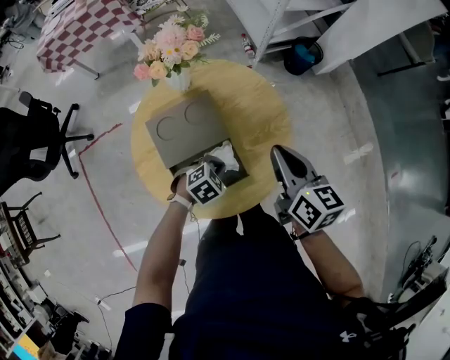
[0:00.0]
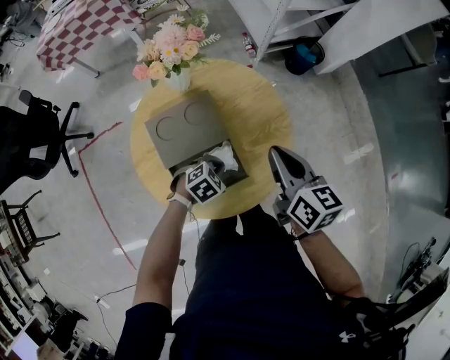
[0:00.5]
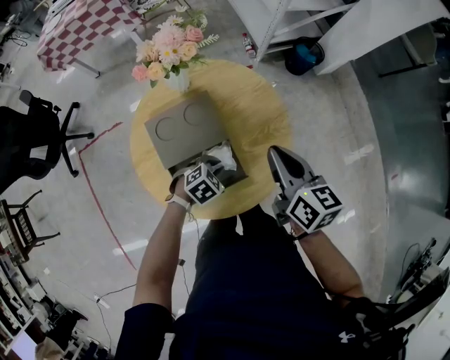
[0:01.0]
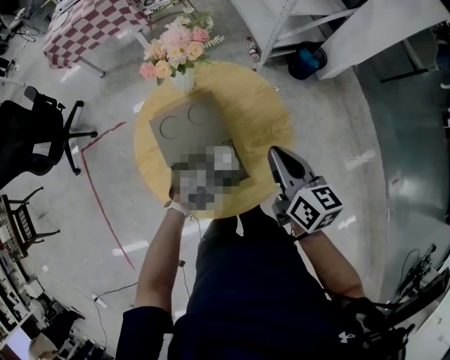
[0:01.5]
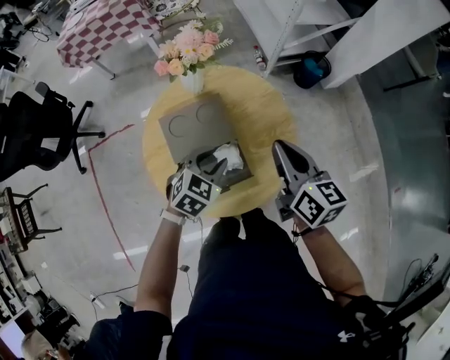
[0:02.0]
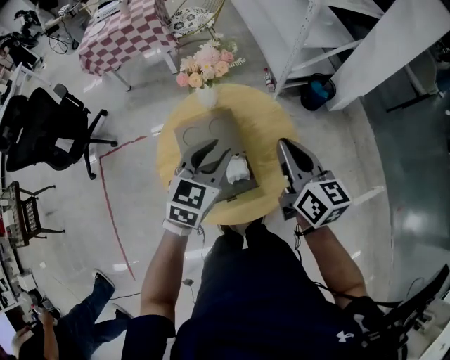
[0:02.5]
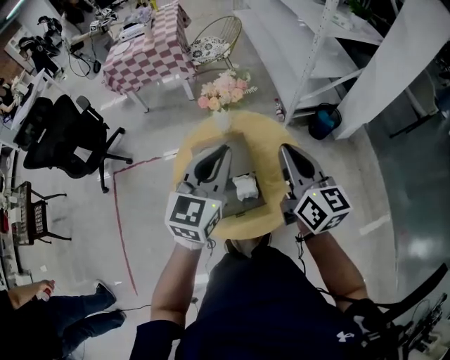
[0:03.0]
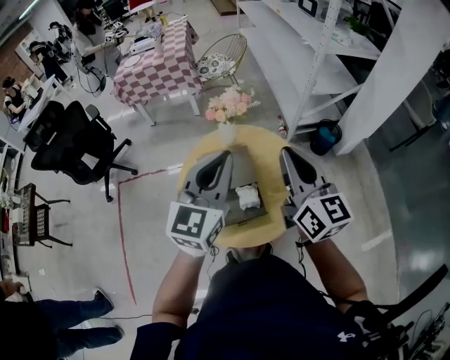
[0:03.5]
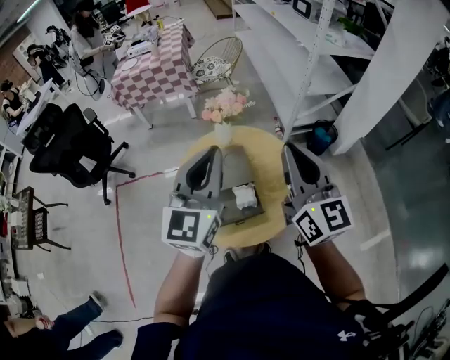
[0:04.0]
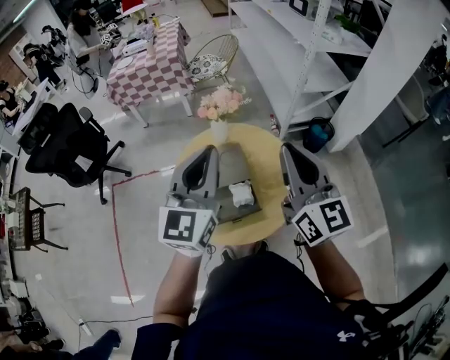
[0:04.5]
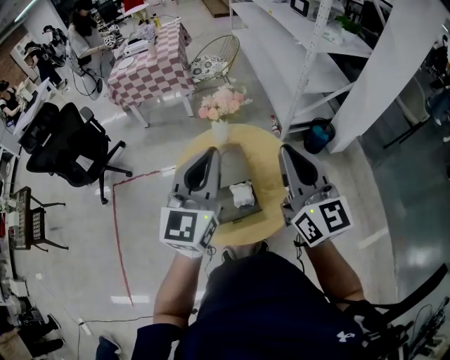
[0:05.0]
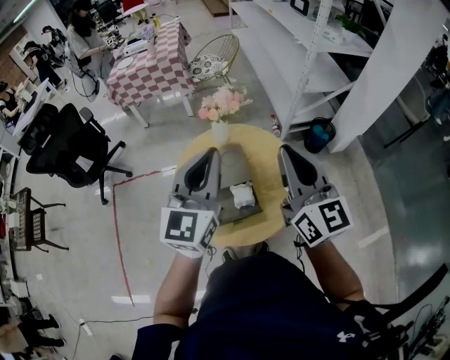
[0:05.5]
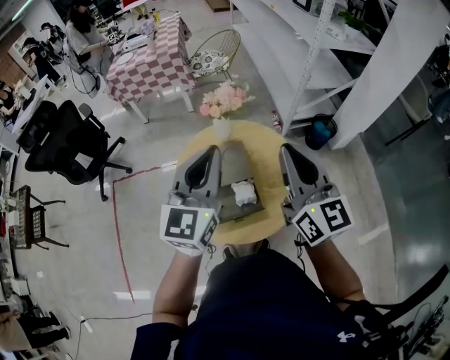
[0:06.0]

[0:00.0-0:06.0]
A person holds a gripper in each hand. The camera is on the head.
0:00.0 to 0:02.0: The left gripper is displaced upward by roughly 15 cm, turns by approximately 30 degrees, and opens its fingers.
0:02.0 to 0:04.0: The right gripper moves upward, roughly 20 cm, and turns by roughly 40 degrees, while the left gripper travels upward by some 35 cm, angles its fingers upward, by approximately 50 degrees, and closes up.
0:04.0 to 0:06.0: The grippers move only a little.

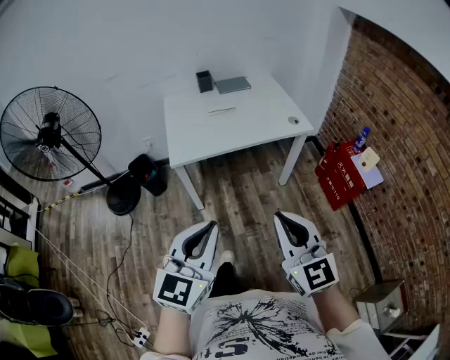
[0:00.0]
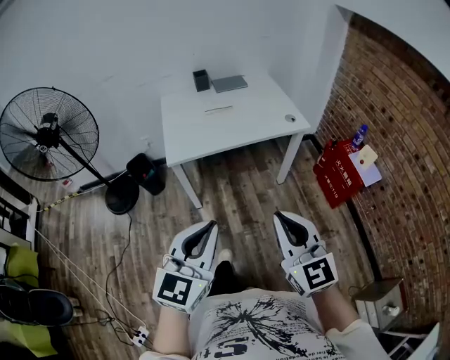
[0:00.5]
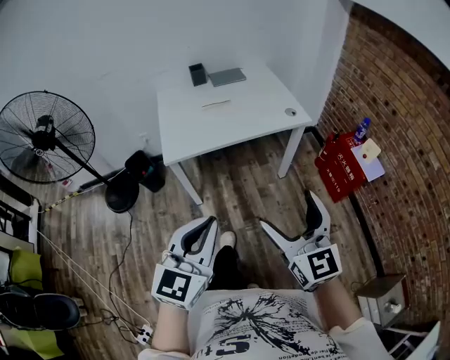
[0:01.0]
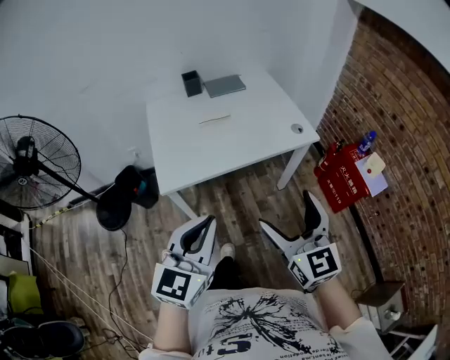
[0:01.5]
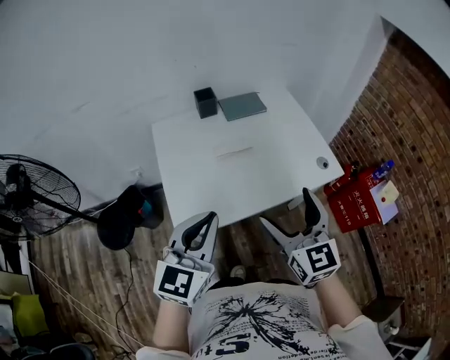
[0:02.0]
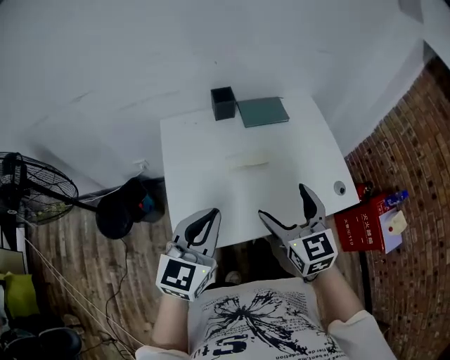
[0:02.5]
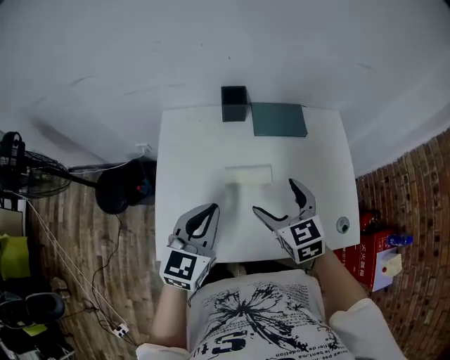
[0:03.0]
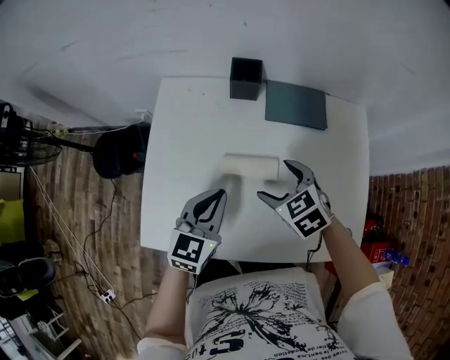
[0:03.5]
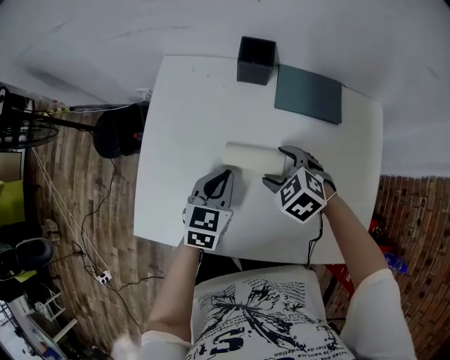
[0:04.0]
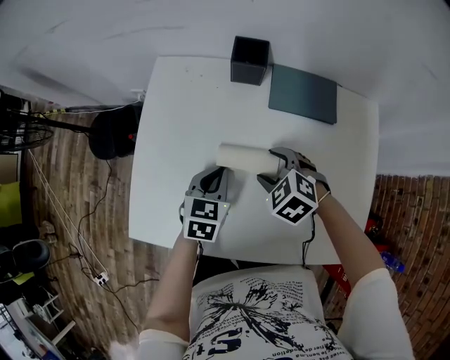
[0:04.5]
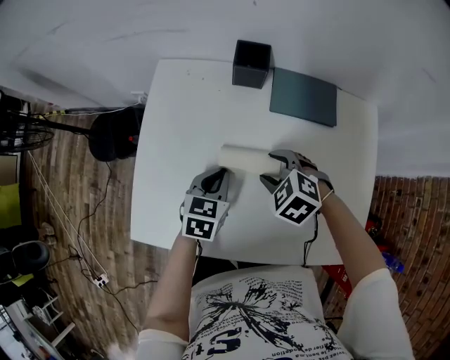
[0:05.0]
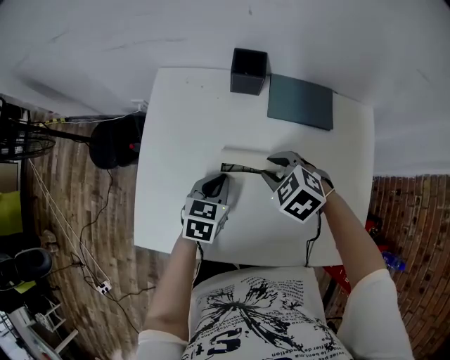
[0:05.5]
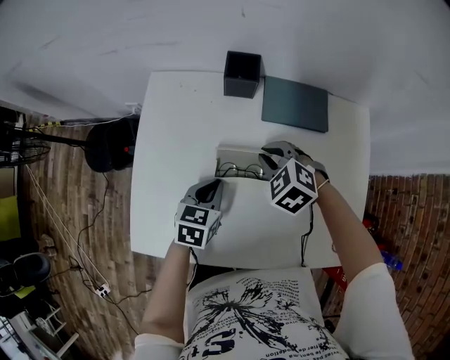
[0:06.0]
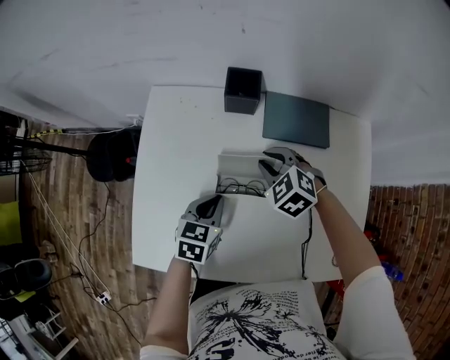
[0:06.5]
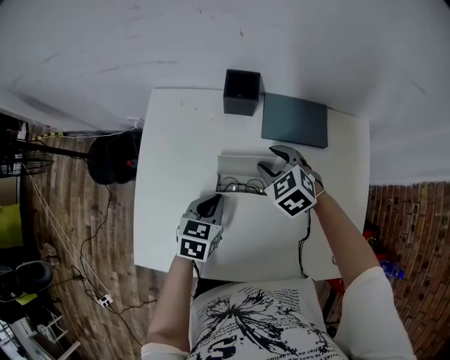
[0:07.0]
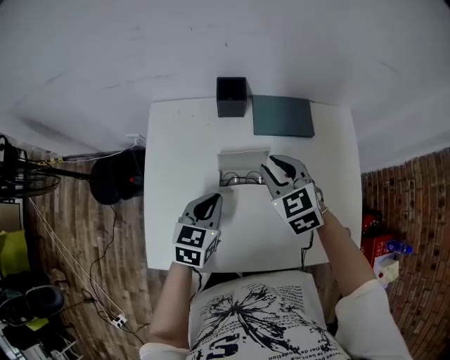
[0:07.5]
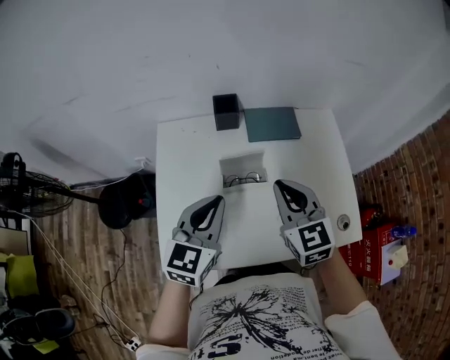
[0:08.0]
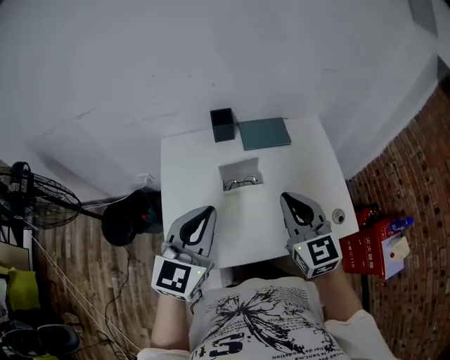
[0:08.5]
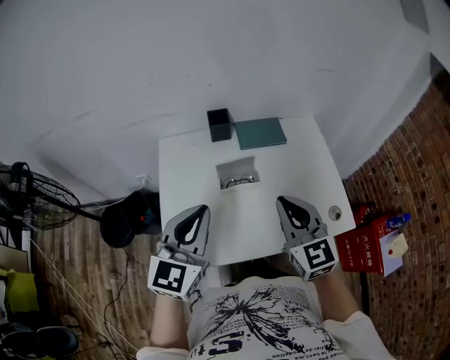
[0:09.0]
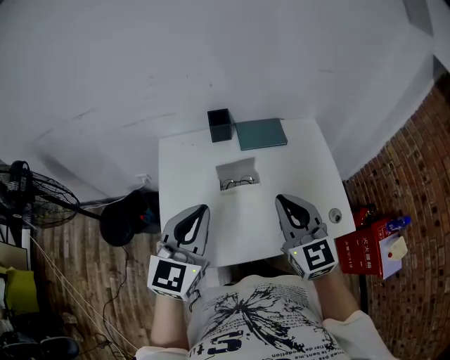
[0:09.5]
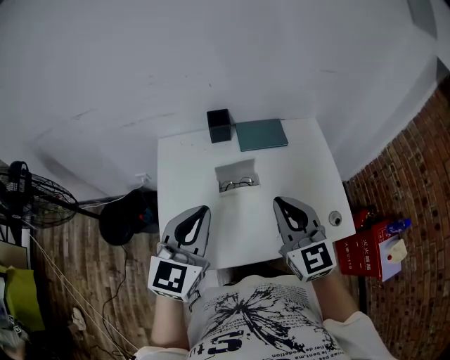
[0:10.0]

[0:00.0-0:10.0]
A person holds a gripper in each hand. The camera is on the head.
0:00.0 to 0:02.0: Both grippers are carried forward, about 50 cm. The right gripper opens its fingers.
0:02.0 to 0:04.0: The left gripper changes place by about 40 cm, and changes its angle by about 40 degrees. Meanwhile the right gripper changes place by some 50 cm, and tips its fingers downward by about 50 degrees.
0:04.0 to 0:06.0: The right gripper travels forward by approximately 5 cm, and closes its fingers.
0:06.0 to 0:08.0: The right gripper moves upward and backward, some 25 cm, and points its fingers about 40 degrees further upward. Meanwhile the left gripper moves upward, some 25 cm, and turns by about 30 degrees.
0:08.0 to 0:10.0: The left gripper travels upward and backward by roughly 10 cm. Meanwhile the right gripper is displaced backward and upward by about 10 cm.

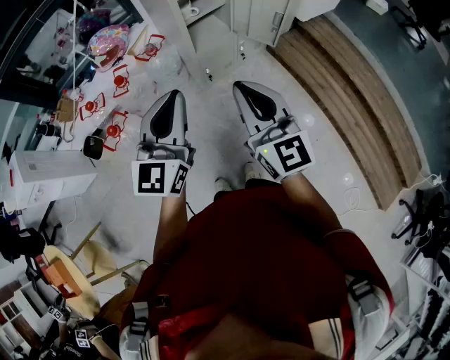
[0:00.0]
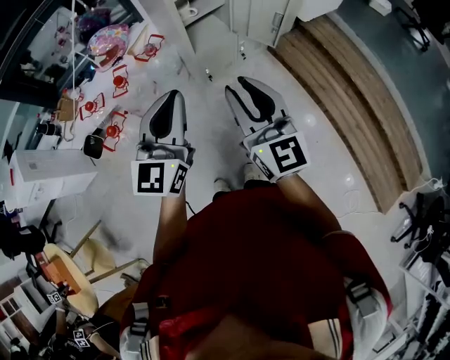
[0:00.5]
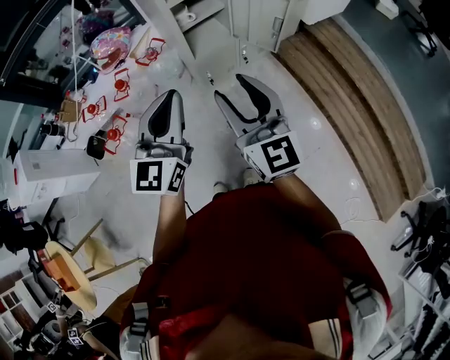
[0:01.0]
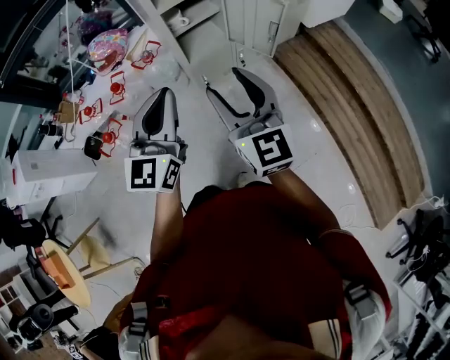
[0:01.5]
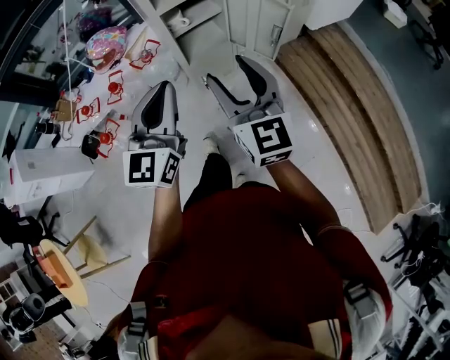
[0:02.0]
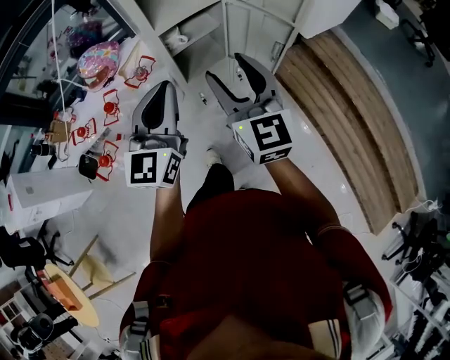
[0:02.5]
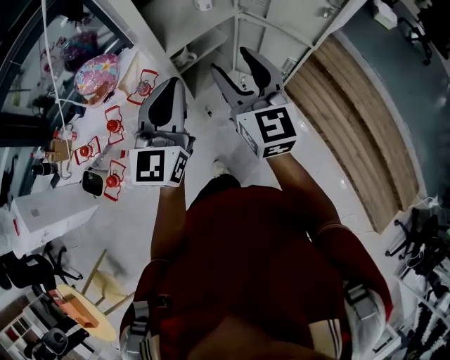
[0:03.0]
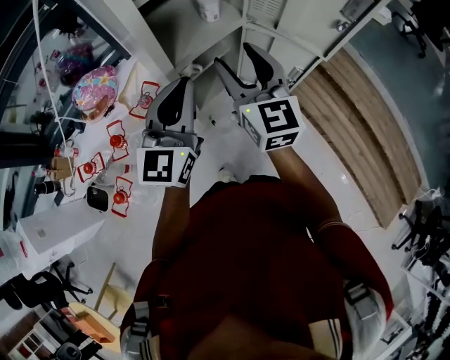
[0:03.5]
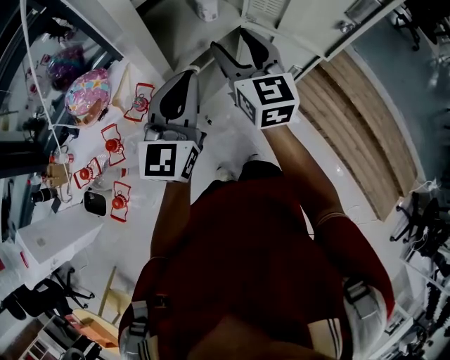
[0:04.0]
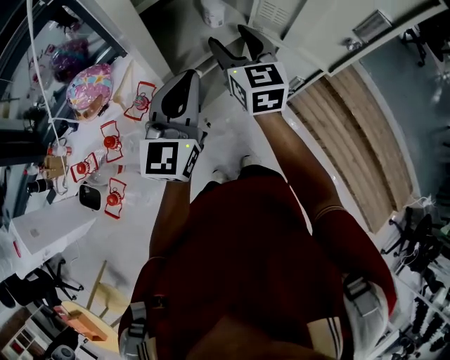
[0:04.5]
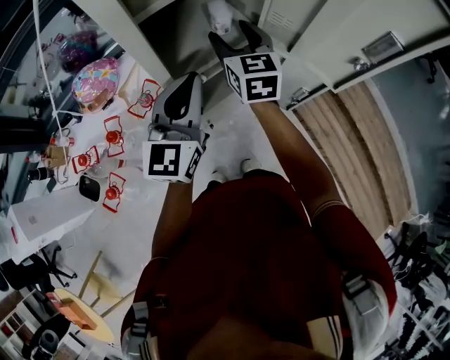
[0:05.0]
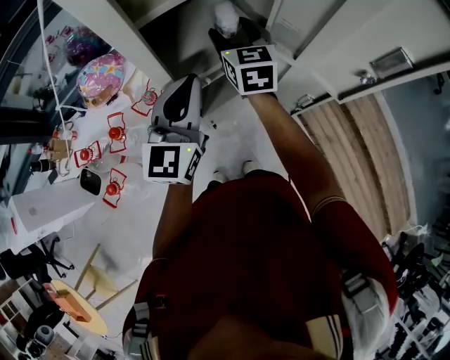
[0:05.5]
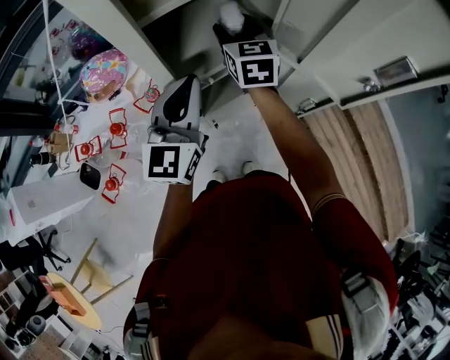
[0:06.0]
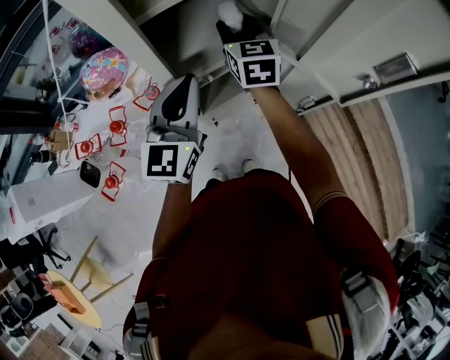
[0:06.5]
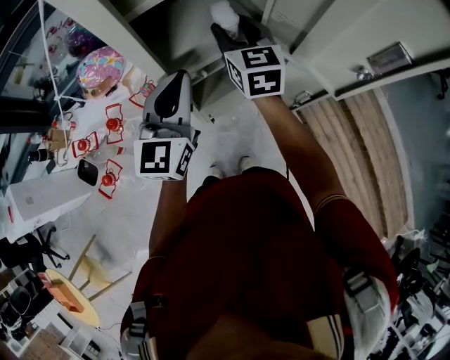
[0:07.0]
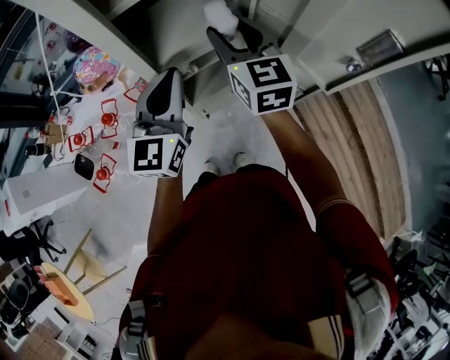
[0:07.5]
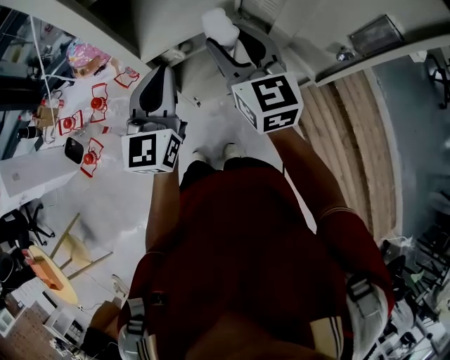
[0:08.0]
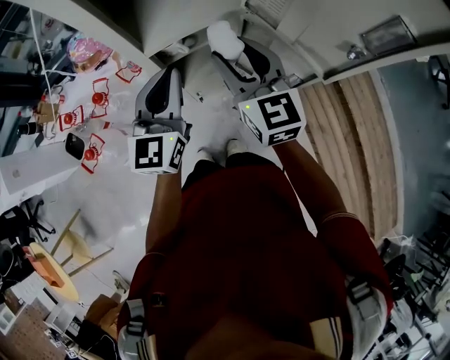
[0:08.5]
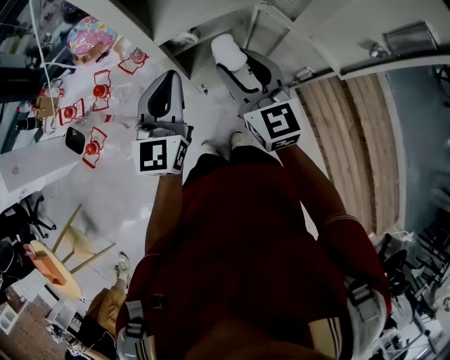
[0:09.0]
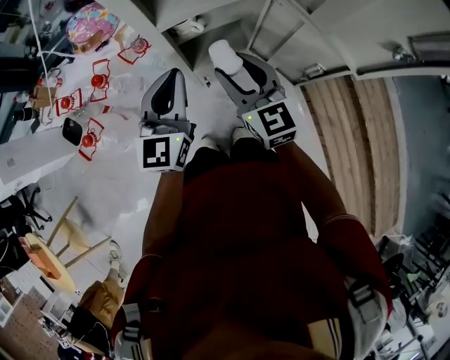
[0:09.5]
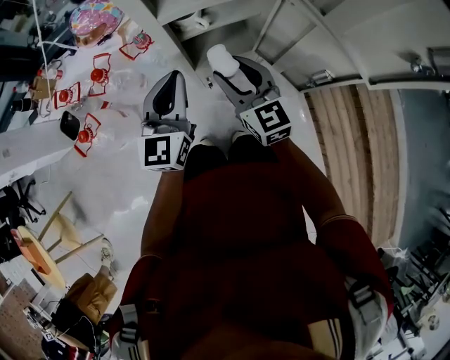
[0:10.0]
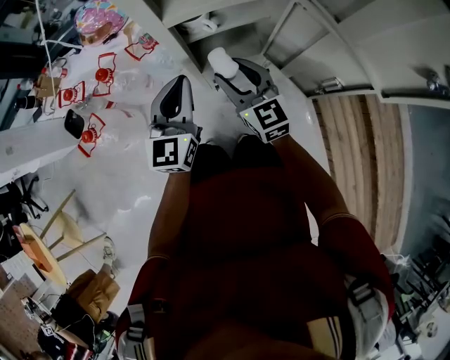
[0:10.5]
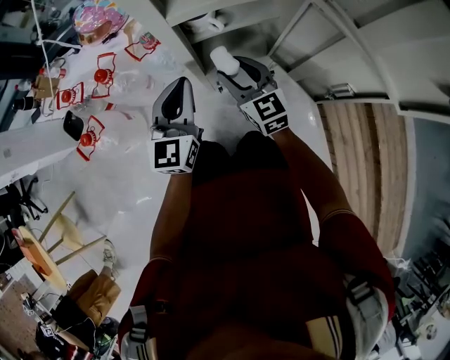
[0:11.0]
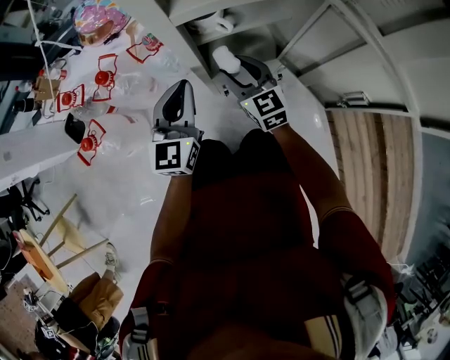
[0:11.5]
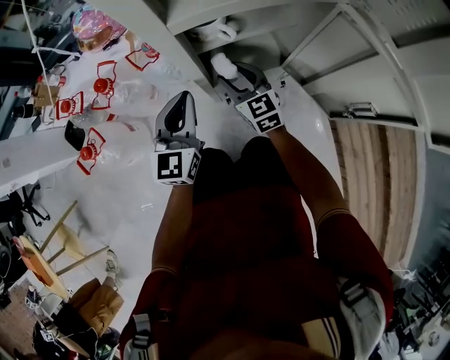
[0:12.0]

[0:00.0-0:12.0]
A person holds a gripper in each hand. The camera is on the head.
0:00.0 to 0:02.0: The grippers both shift forward and to the right by about 15 cm. The right gripper opens.
0:02.0 to 0:04.0: Both grippers travel together forward, some 30 cm.
0:04.0 to 0:06.0: The left gripper travels forward by some 5 cm. The right gripper is displaced forward by about 15 cm.
0:06.0 to 0:08.0: The right gripper moves backward, about 15 cm. Meanwhile the left gripper moves some 5 cm.
0:08.0 to 0:10.0: The left gripper heads downward and to the left, covering about 15 cm; the right gripper is displaced downward by approximately 20 cm.
0:10.0 to 0:12.0: The right gripper goes some 25 cm downward and forward; the left gripper travels downward by some 15 cm.
